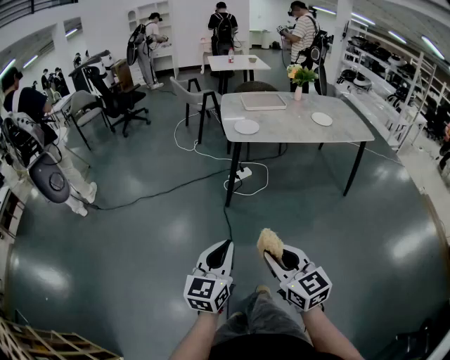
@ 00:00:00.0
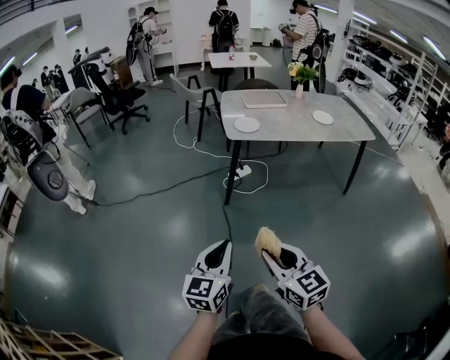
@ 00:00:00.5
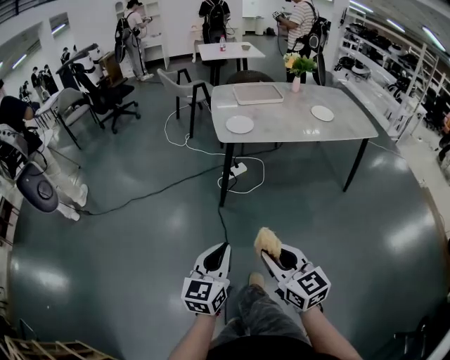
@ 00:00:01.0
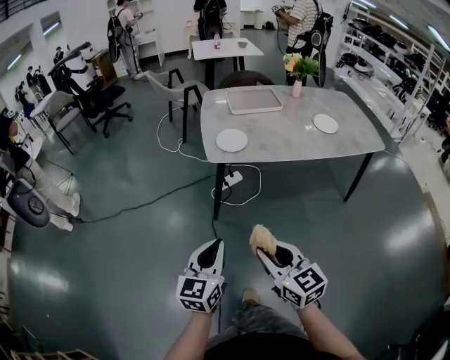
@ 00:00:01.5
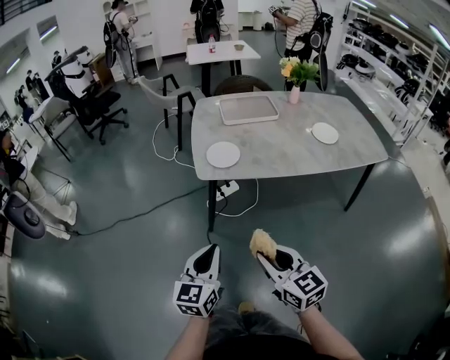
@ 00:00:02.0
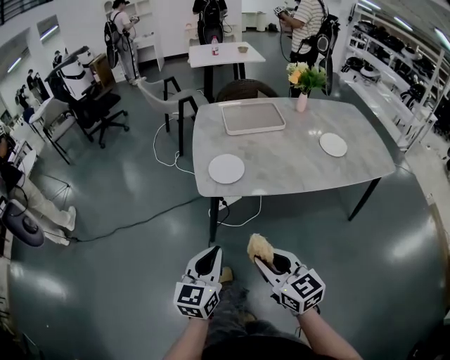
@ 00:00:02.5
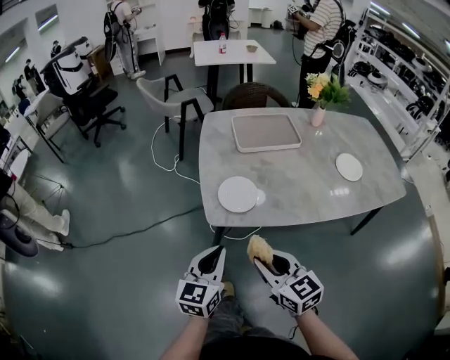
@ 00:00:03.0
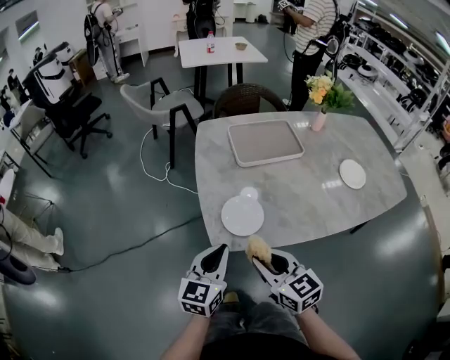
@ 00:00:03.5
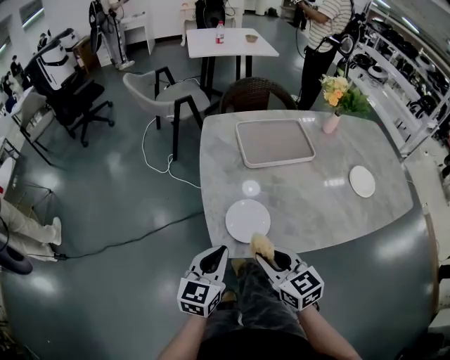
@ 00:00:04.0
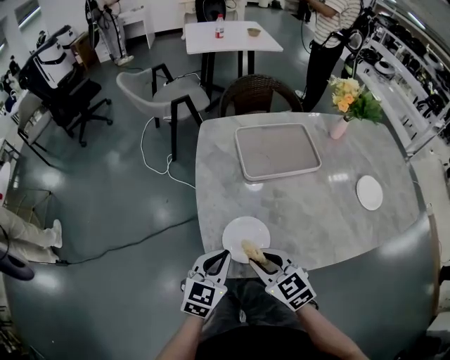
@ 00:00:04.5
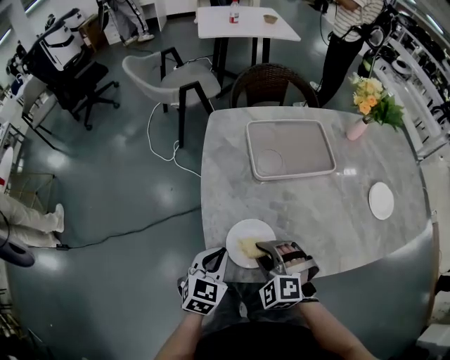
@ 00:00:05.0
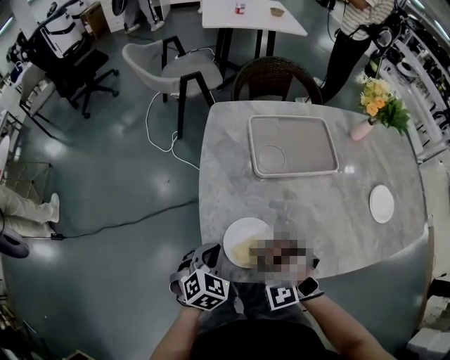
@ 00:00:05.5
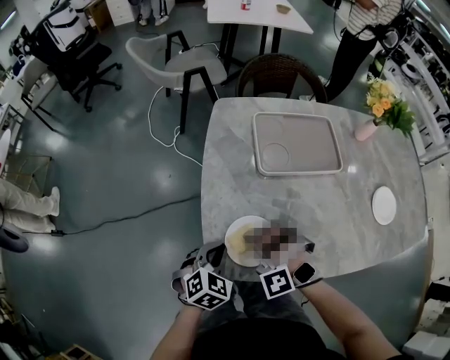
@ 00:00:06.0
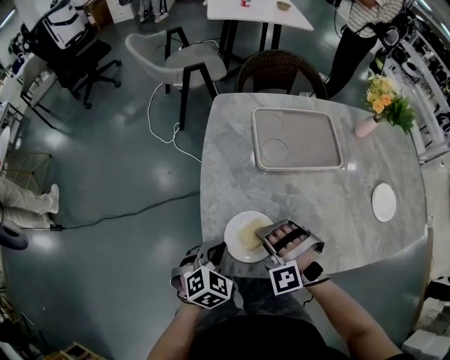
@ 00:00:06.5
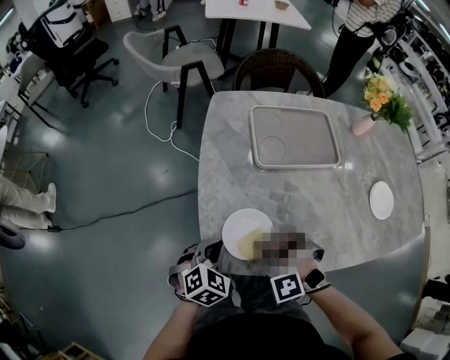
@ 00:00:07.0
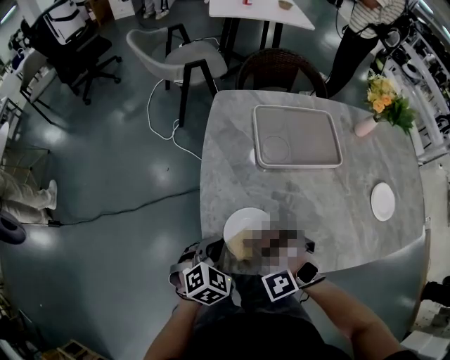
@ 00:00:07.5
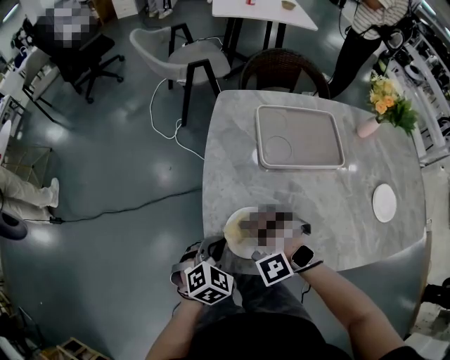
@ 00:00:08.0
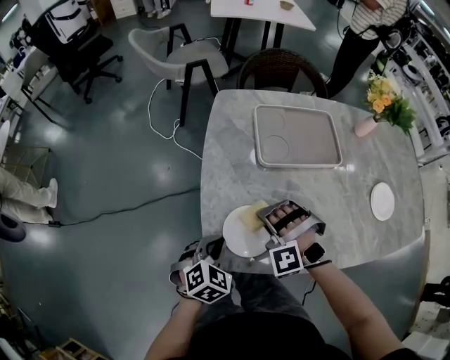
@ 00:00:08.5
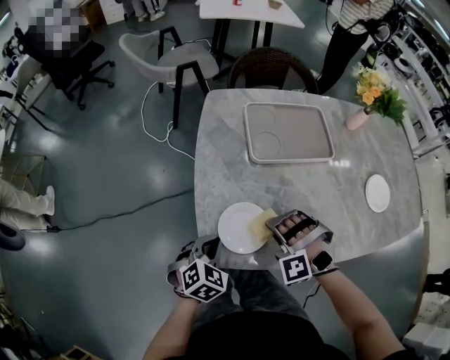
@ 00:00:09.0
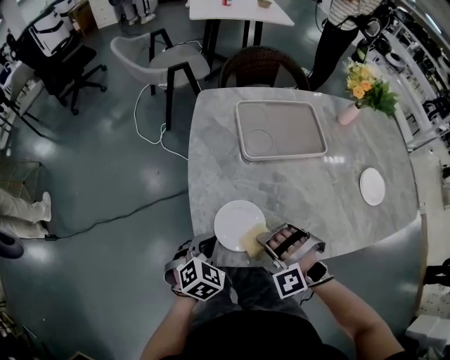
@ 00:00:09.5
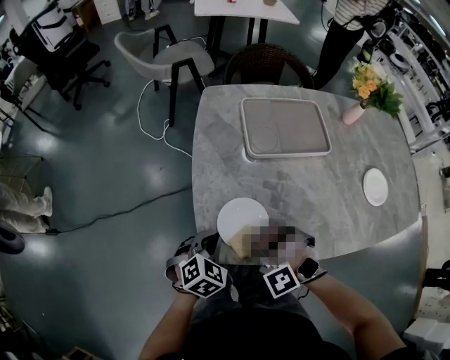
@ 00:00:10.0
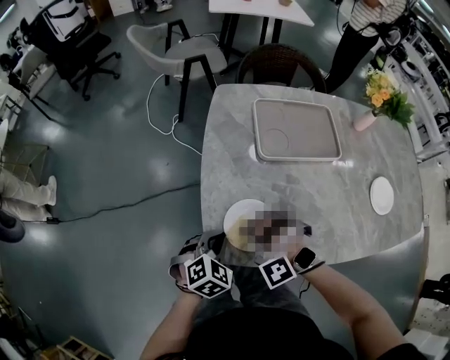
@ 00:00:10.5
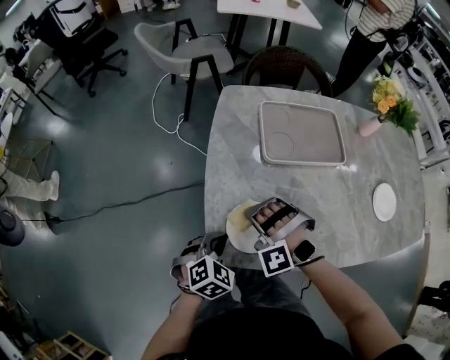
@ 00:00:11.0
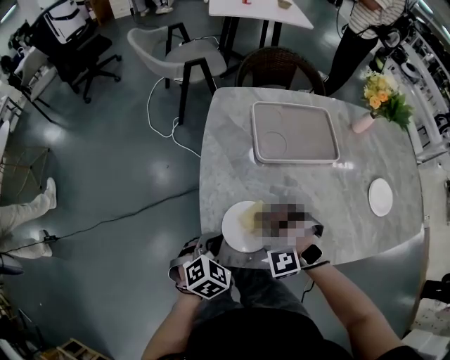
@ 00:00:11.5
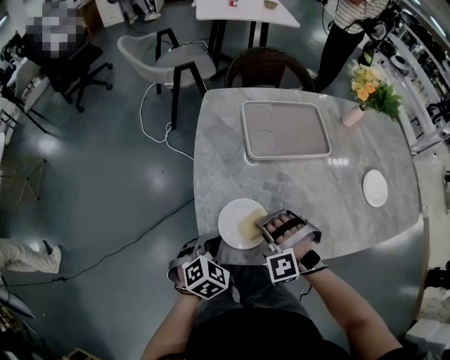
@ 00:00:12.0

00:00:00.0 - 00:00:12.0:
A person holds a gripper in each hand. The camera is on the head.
00:00:00.0 - 00:00:02.0: The left gripper goes some 30 cm forward. The right gripper is displaced forward and to the right by approximately 35 cm.
00:00:02.0 - 00:00:04.0: Both grippers travel together forward, about 35 cm.
00:00:04.0 - 00:00:06.0: The right gripper goes about 15 cm forward and downward, and rolls counterclockwise, seen from behind, by about 100 degrees. Meanwhile the left gripper shifts approximately 15 cm downward and forward, and angles its fingers downward, by some 30 degrees.
00:00:08.0 - 00:00:10.0: The right gripper goes roughly 5 cm backward.
00:00:10.0 - 00:00:12.0: The right gripper travels forward by roughly 5 cm.

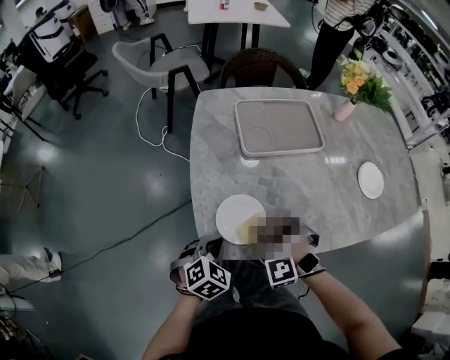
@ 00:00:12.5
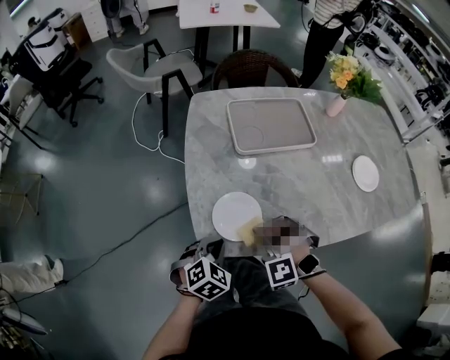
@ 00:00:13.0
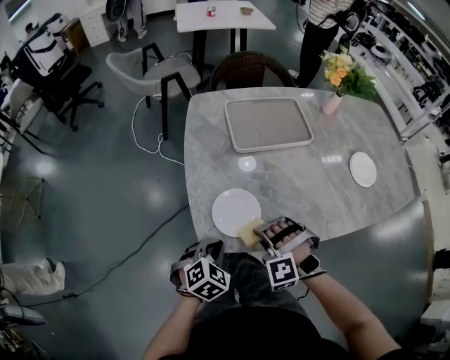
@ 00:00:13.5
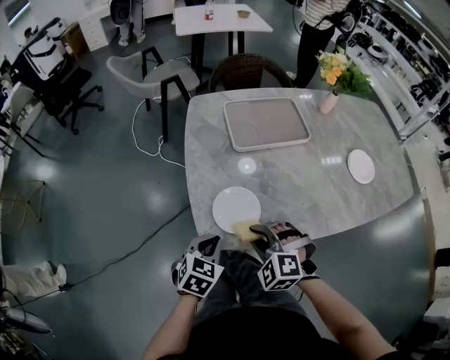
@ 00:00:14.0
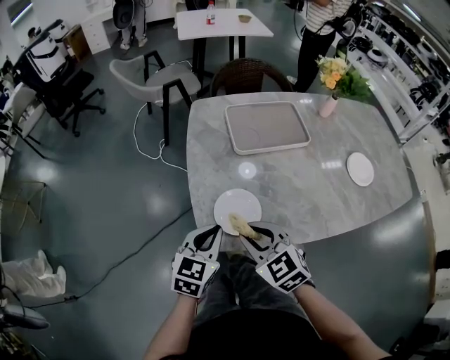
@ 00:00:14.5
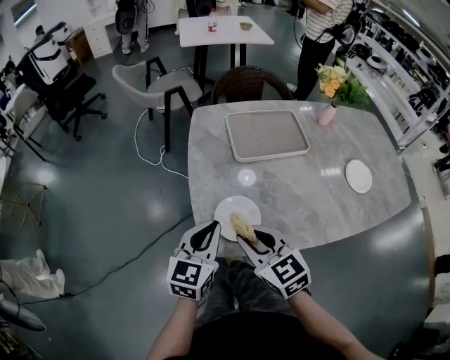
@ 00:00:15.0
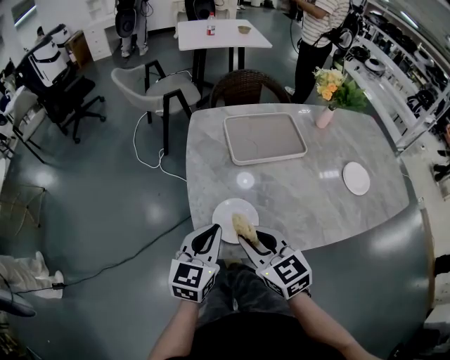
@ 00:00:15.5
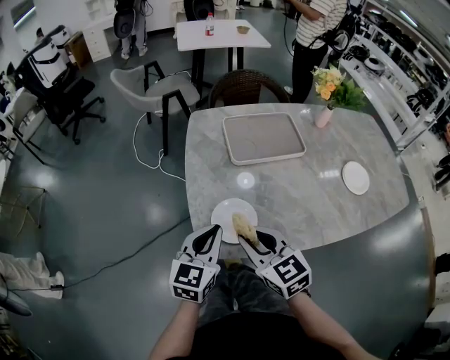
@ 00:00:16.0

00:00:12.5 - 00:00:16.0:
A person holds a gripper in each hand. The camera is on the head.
00:00:12.5 - 00:00:14.5: Both grippers move upward, some 10 cm. The left gripper rotates approximately 30 degrees. Meanwhile the right gripper rolls clockwise, seen from behind, by some 70 degrees.
00:00:14.5 - 00:00:16.0: The grippers stay close to where they were, moving slightly.

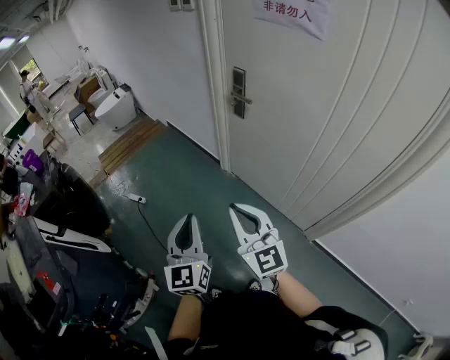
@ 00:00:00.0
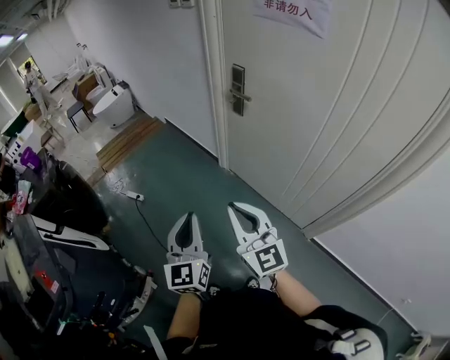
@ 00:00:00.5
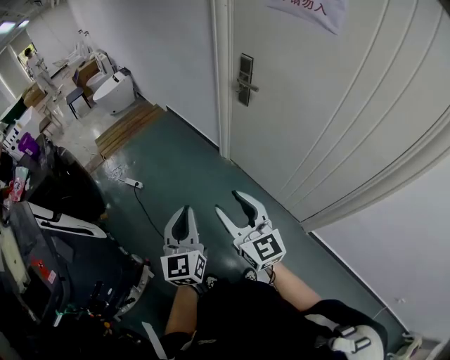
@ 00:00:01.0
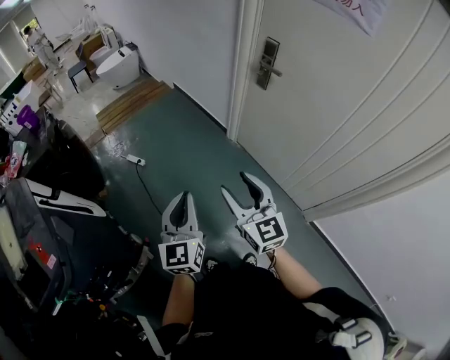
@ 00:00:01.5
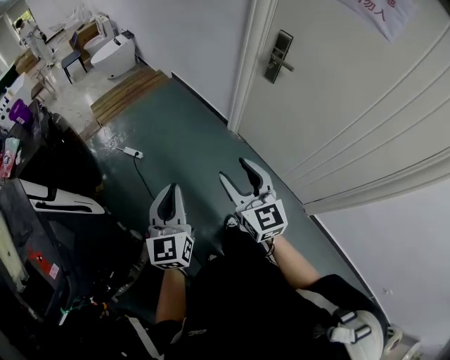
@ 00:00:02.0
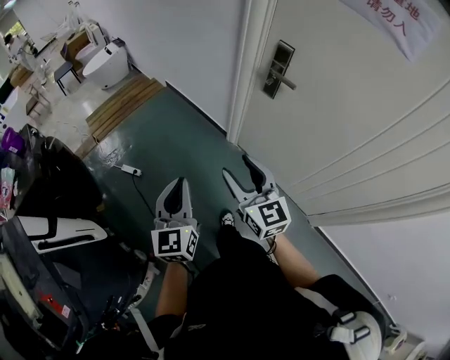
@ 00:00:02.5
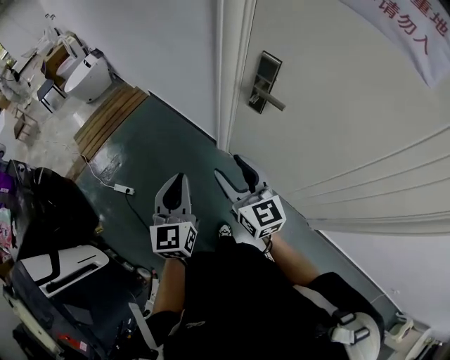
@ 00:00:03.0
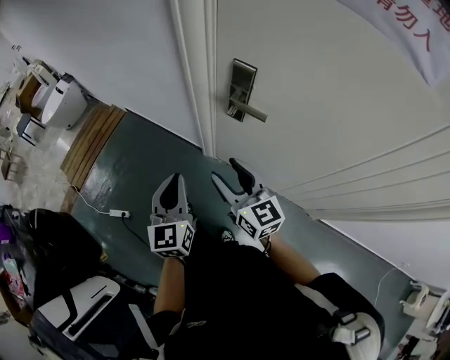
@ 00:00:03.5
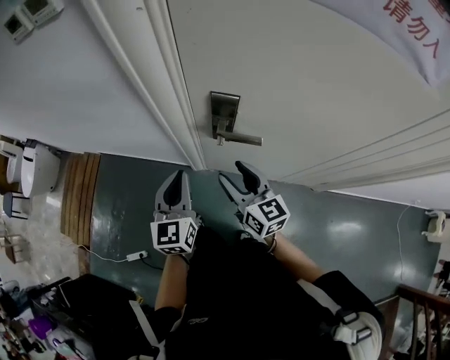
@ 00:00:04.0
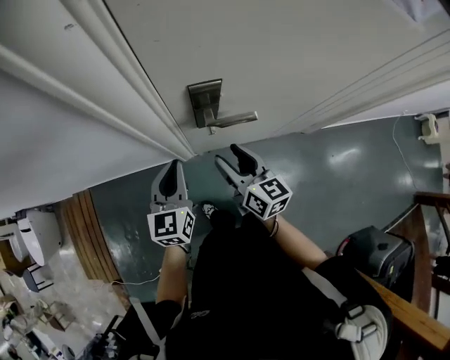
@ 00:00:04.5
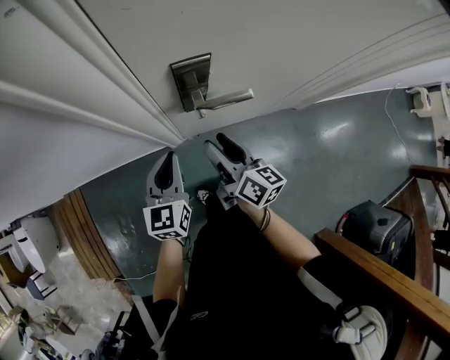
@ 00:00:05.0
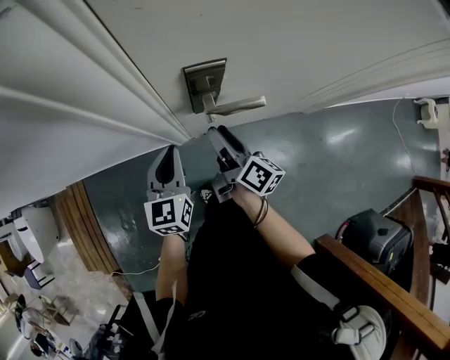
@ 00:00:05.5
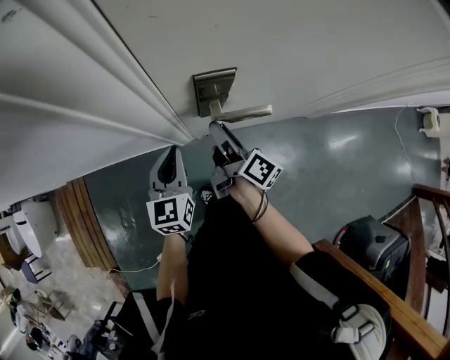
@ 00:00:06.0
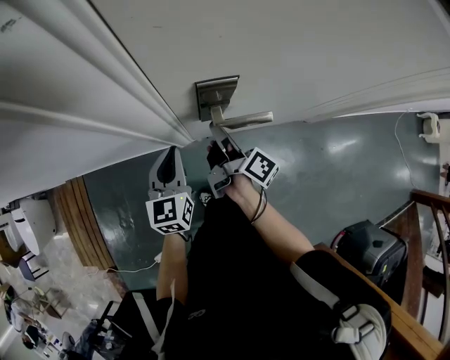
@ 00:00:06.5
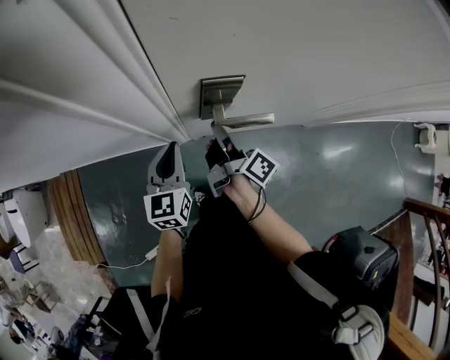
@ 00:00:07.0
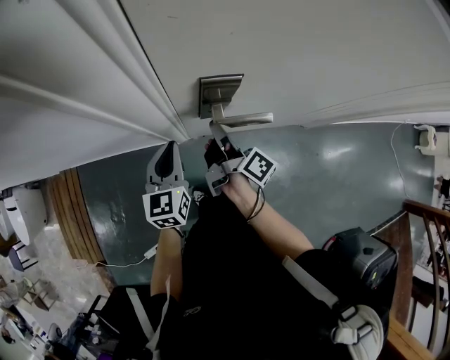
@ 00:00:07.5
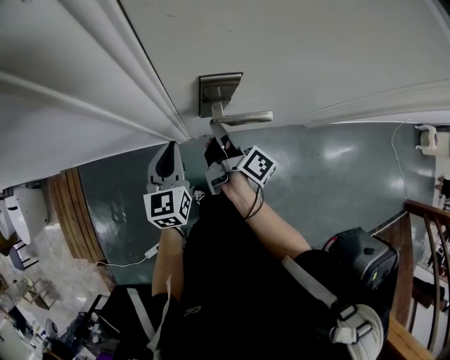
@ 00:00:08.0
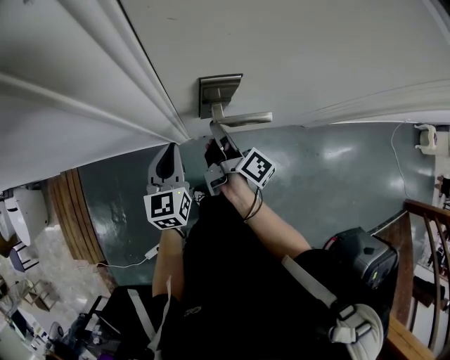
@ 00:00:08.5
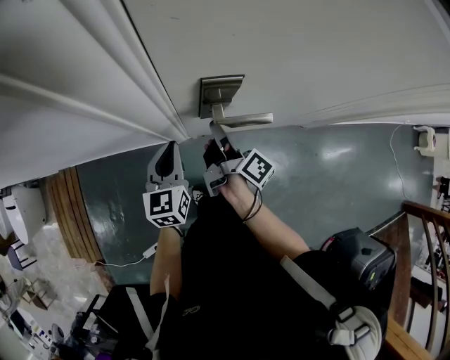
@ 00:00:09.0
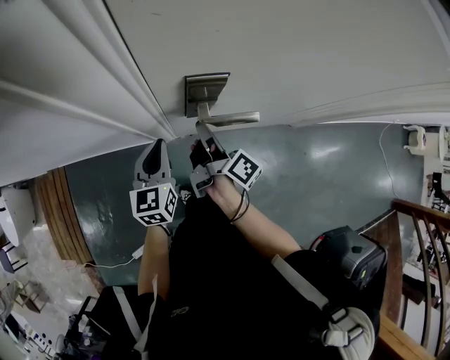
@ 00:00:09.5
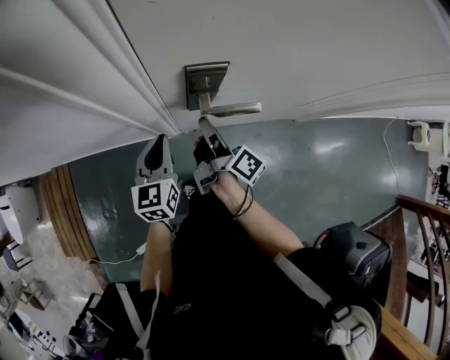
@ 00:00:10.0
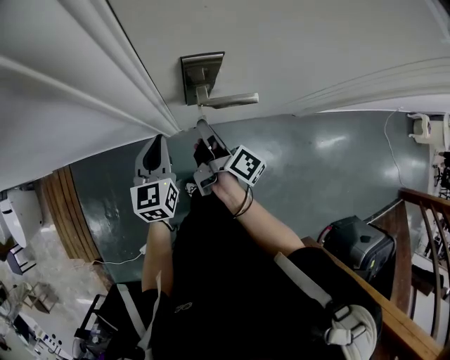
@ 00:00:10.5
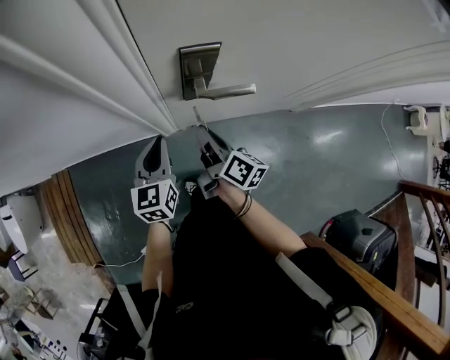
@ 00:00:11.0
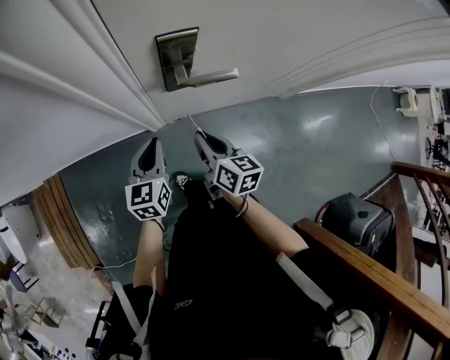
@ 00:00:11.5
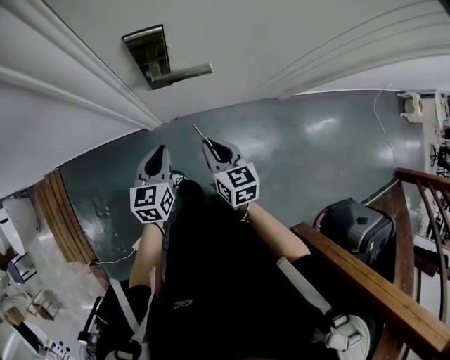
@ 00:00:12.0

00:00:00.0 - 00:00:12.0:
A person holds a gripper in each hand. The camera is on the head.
00:00:00.0 - 00:00:02.0: The right gripper is displaced to the left, forward and downward by some 20 cm, and opens its fingers. Meanwhile the left gripper is displaced to the left by approximately 20 cm.
00:00:02.0 - 00:00:04.0: Both grippers are carried about 60 cm. The left gripper turns by approximately 40 degrees; the right gripper swivels some 40 degrees.
00:00:04.0 - 00:00:06.0: The left gripper moves downward, roughly 10 cm, and changes its angle by some 20 degrees. Meanwhile the right gripper changes place by about 15 cm, and twists about 50 degrees clockwise, seen from behind.
00:00:06.0 - 00:00:08.0: The right gripper closes.
00:00:08.0 - 00:00:10.0: There are only small adjustments of the grippers.
00:00:10.0 - 00:00:12.0: Both grippers travel together backward and to the right, some 15 cm. The right gripper twists roughly 60 degrees counterclockwise, seen from behind.
